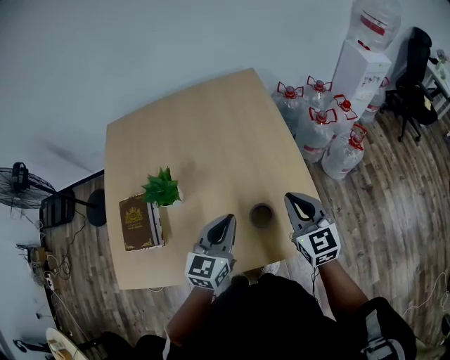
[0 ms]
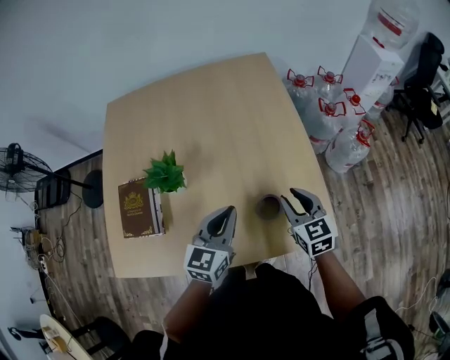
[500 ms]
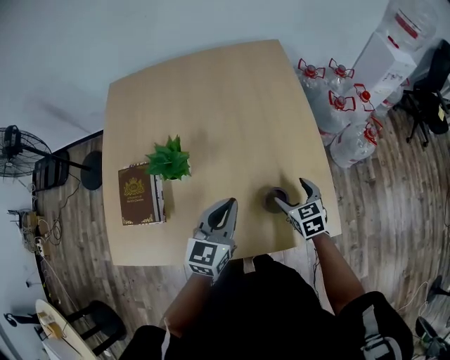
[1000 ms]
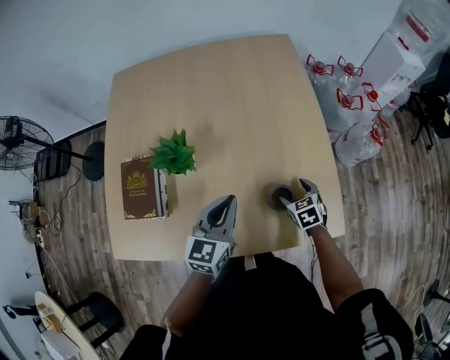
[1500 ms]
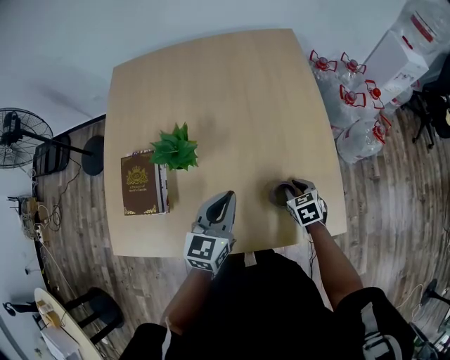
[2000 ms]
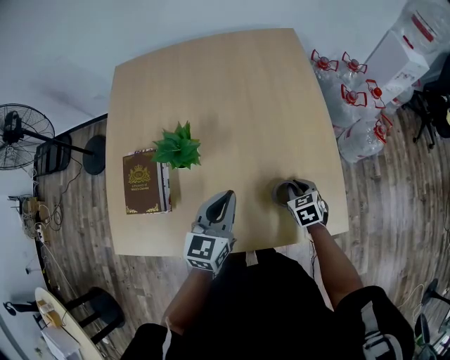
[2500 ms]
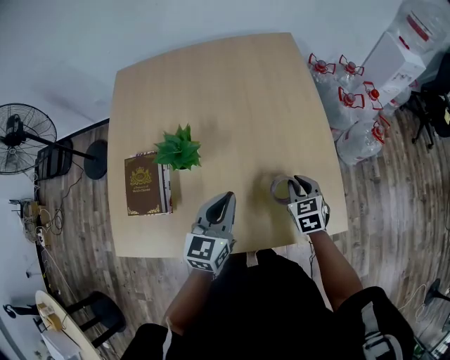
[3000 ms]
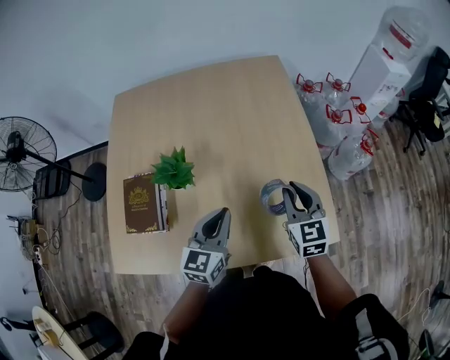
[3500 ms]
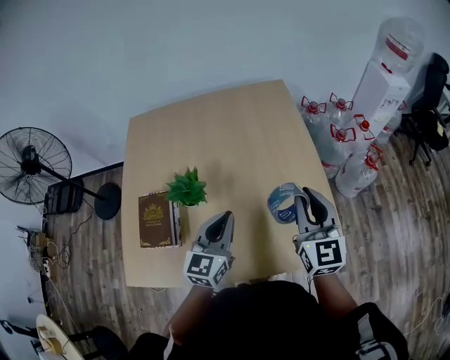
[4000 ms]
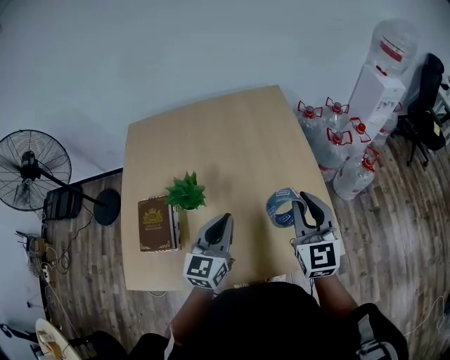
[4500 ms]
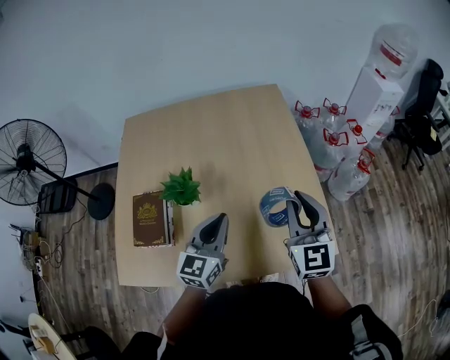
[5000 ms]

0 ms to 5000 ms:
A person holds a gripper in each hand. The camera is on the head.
0 ms to 2500 ms: The right gripper moves downward, about 25 cm, angles its fingers downward, by some 40 degrees, and opens, then closes again. The left gripper is displaced to the left by about 10 cm.
2500 ms to 5000 ms: The left gripper goes about 10 cm upward, while the right gripper goes about 35 cm upward, and angles its fingers upward, by approximately 50 degrees.

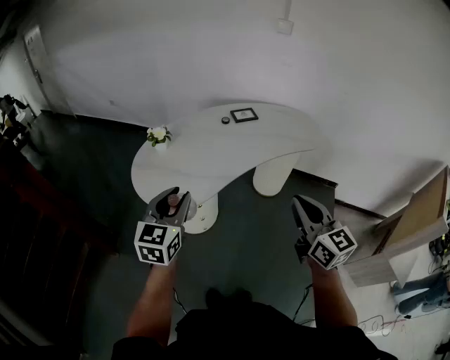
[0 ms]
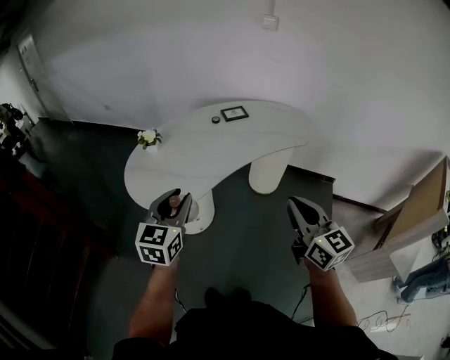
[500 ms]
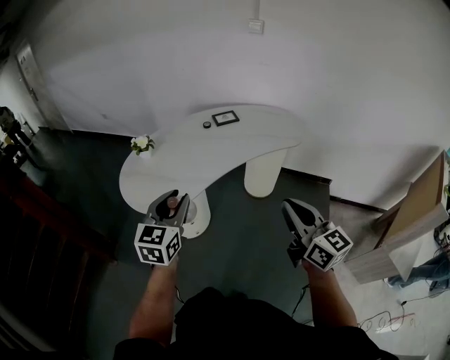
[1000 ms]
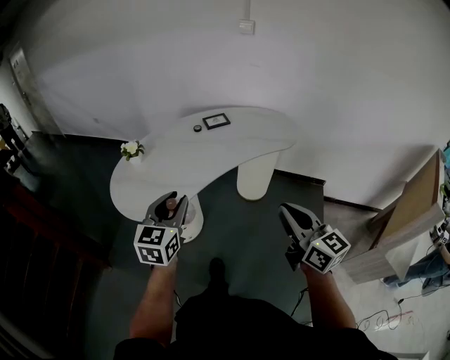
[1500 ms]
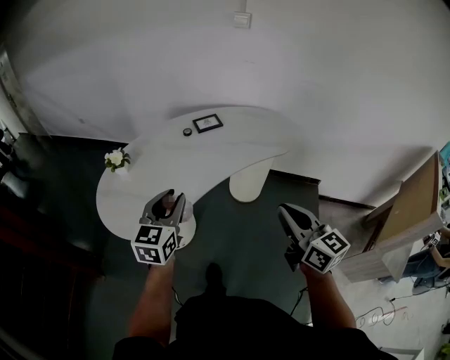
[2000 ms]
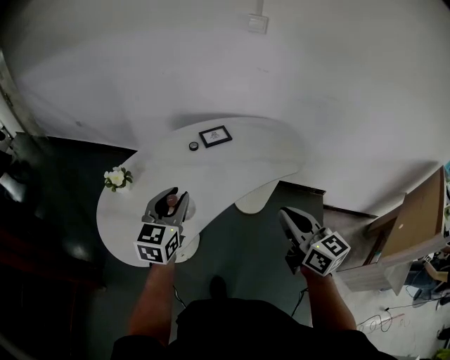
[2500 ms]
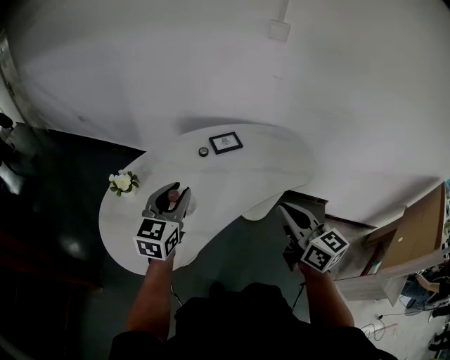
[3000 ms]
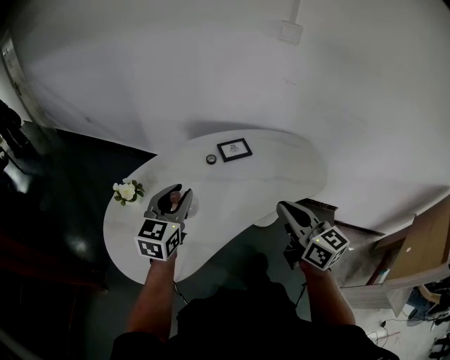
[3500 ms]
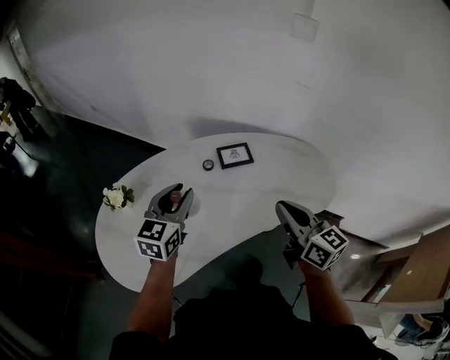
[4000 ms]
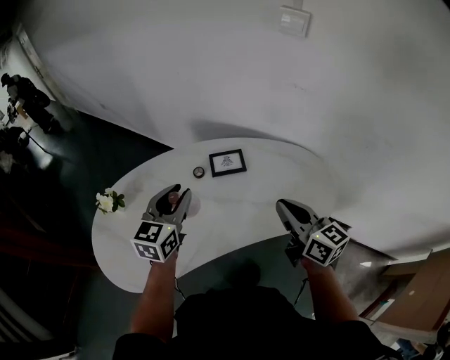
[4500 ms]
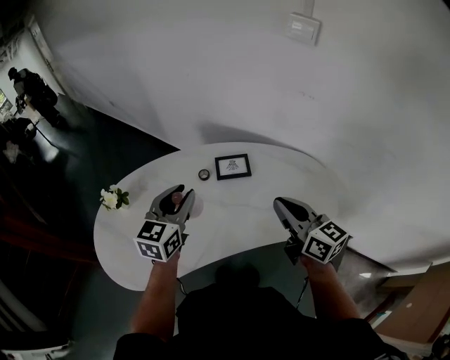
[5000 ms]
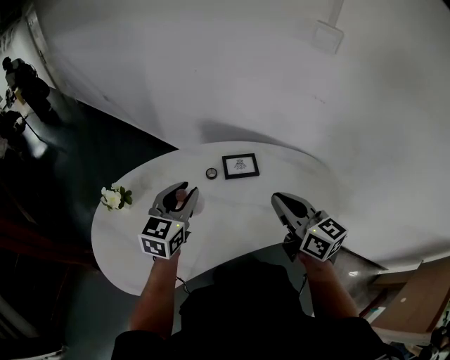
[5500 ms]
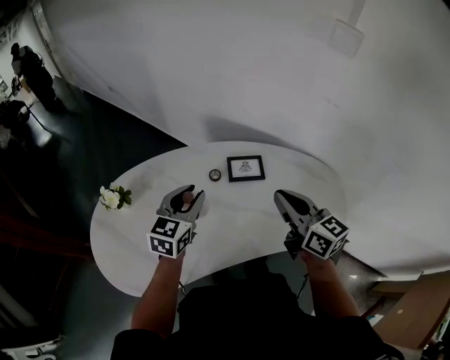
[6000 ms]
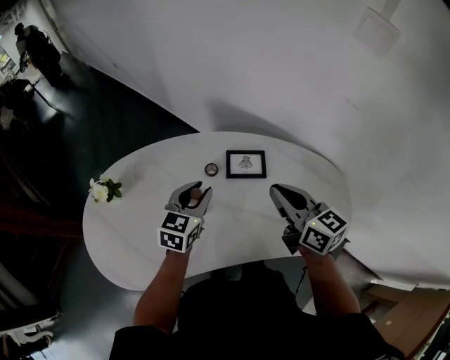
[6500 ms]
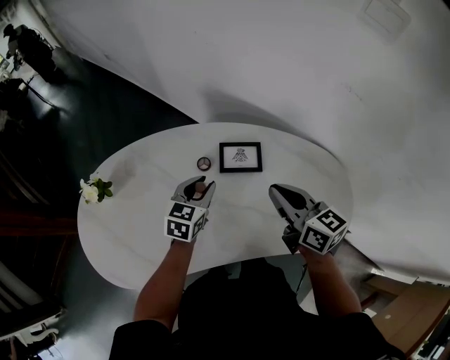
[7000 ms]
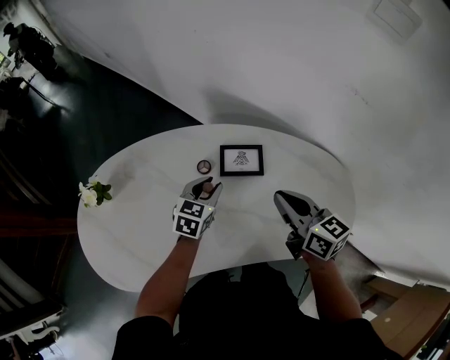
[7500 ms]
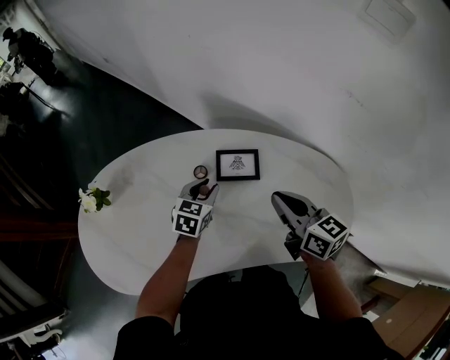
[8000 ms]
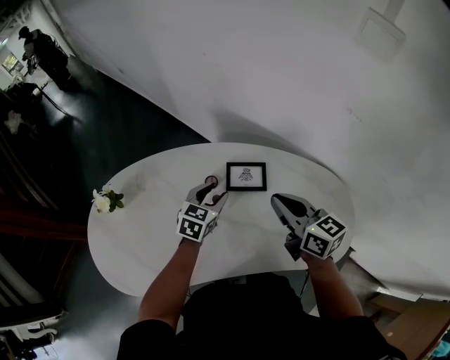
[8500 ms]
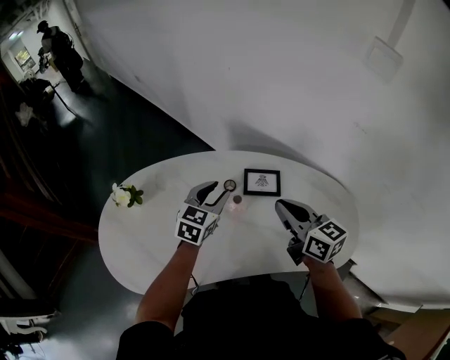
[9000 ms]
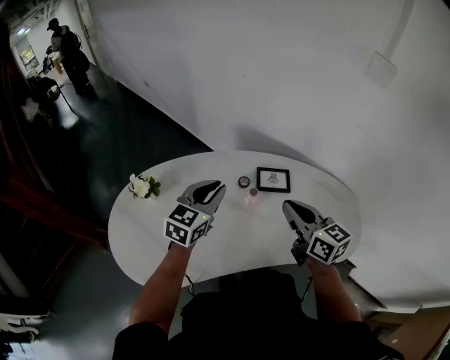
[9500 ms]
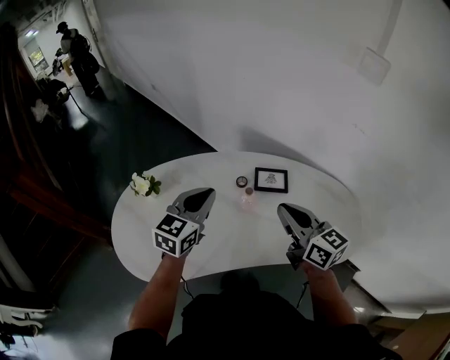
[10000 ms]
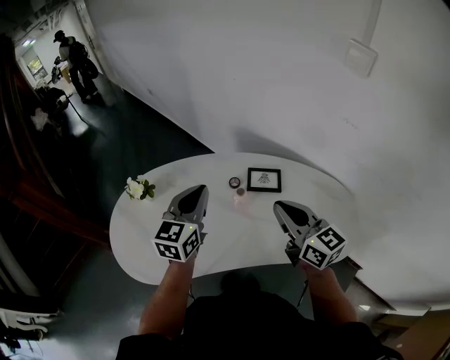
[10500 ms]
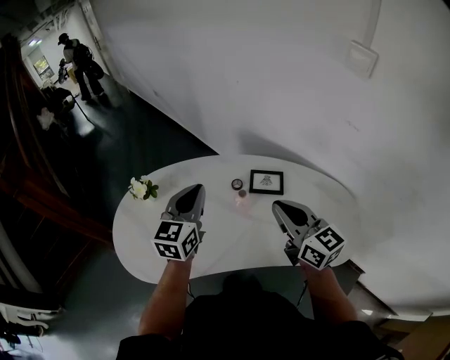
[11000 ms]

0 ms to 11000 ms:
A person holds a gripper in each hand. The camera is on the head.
0 ms to 2000 ms: Both grippers travel together to the right and forward, approximately 15 cm.
2000 ms to 3500 ms: Both grippers travel together forward, some 25 cm.
3500 ms to 5500 ms: The left gripper is displaced forward and to the right by approximately 15 cm, while the right gripper shifts approximately 20 cm forward.
5500 ms to 7500 ms: The left gripper goes about 25 cm downward, to the right and forward, and turns by about 20 degrees; the right gripper moves downward, forward and to the right, about 20 cm.
7500 ms to 9000 ms: The right gripper shifts roughly 10 cm to the left and upward, while the left gripper goes roughly 15 cm upward and to the left.
9000 ms to 11000 ms: The right gripper moves backward and upward, roughly 10 cm. Meanwhile the left gripper travels upward, backward and to the left by about 20 cm, turns by about 20 degrees, and closes up.

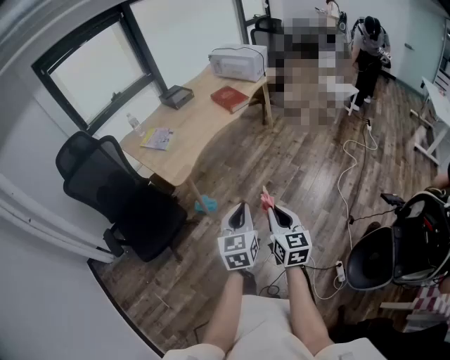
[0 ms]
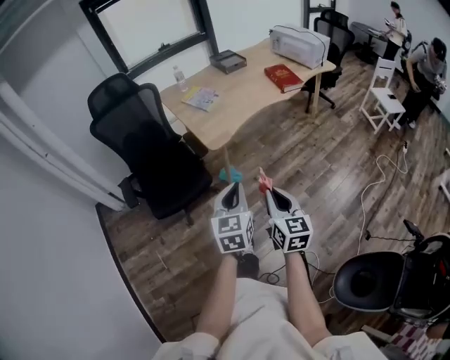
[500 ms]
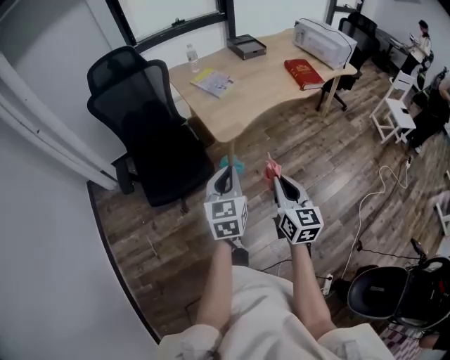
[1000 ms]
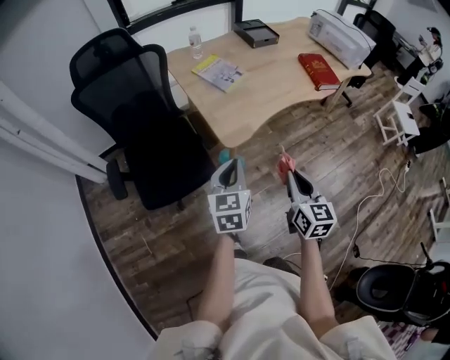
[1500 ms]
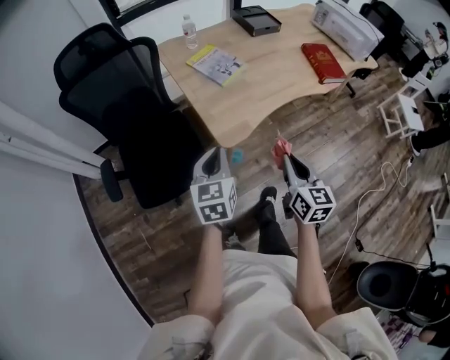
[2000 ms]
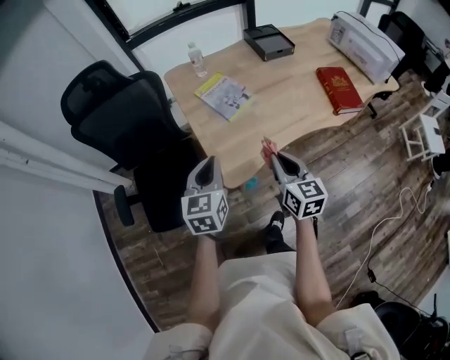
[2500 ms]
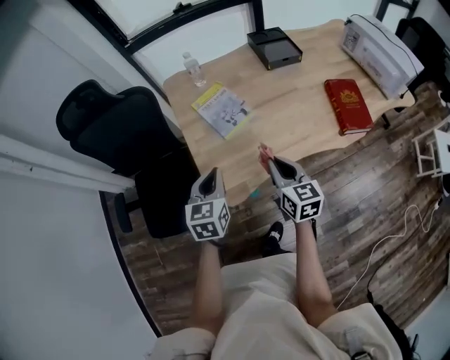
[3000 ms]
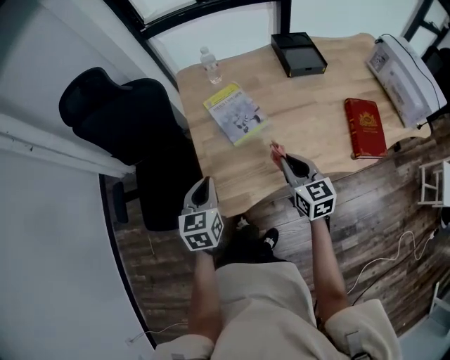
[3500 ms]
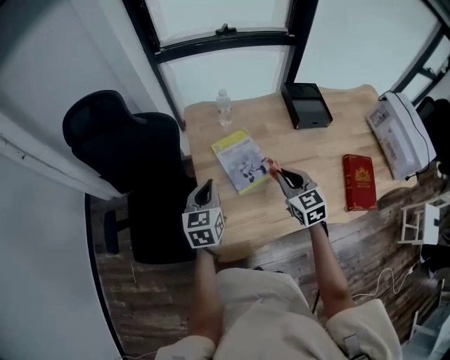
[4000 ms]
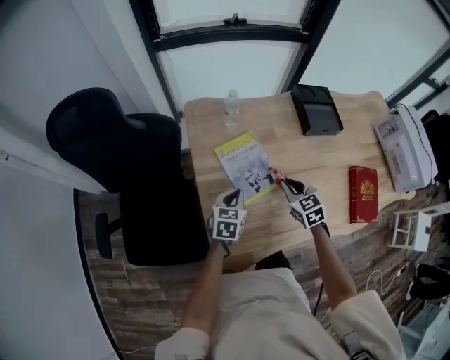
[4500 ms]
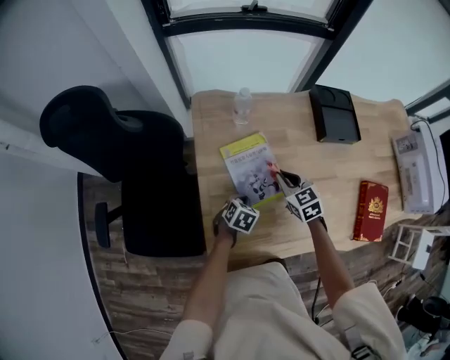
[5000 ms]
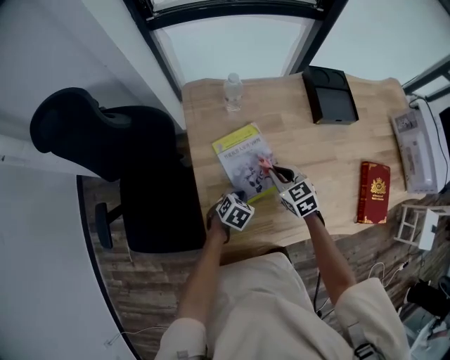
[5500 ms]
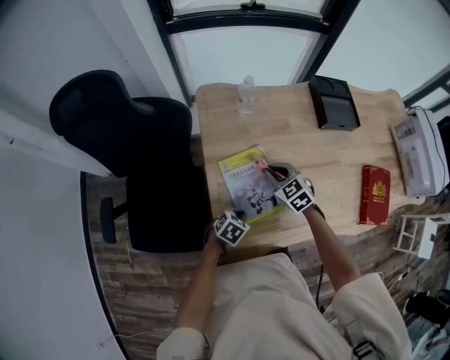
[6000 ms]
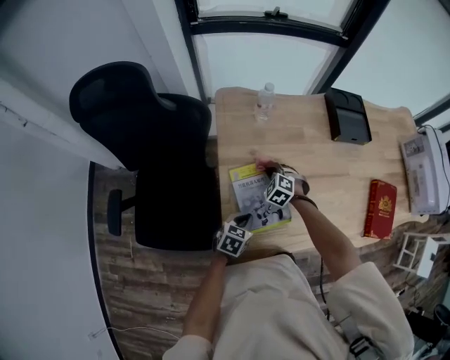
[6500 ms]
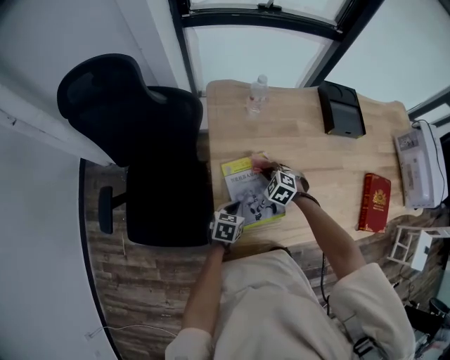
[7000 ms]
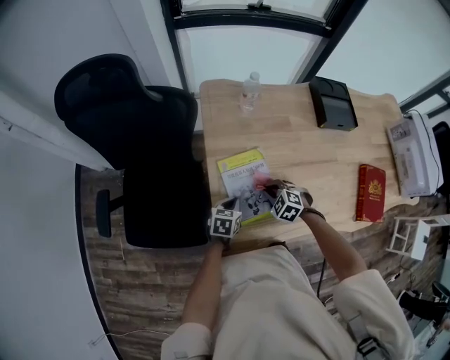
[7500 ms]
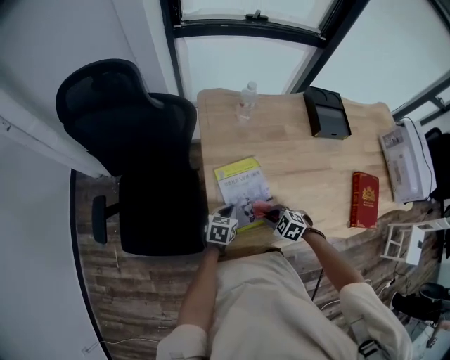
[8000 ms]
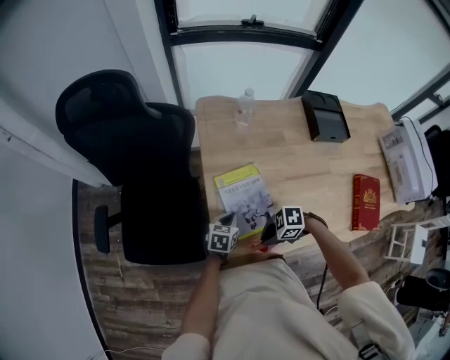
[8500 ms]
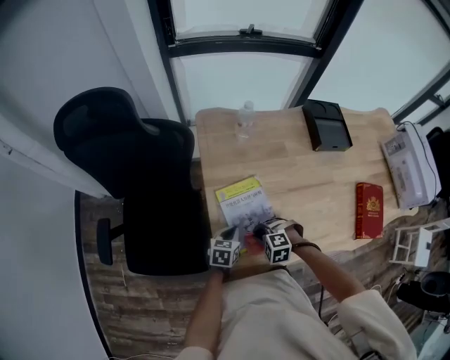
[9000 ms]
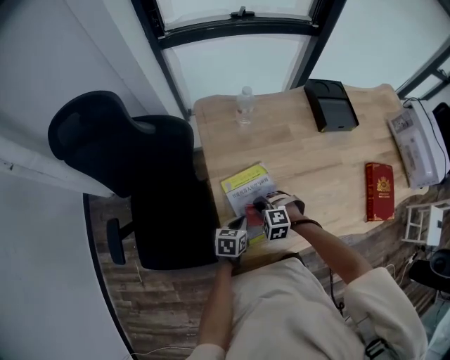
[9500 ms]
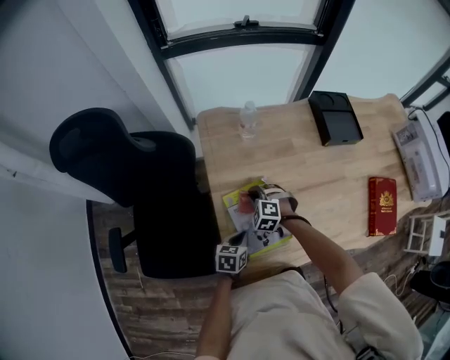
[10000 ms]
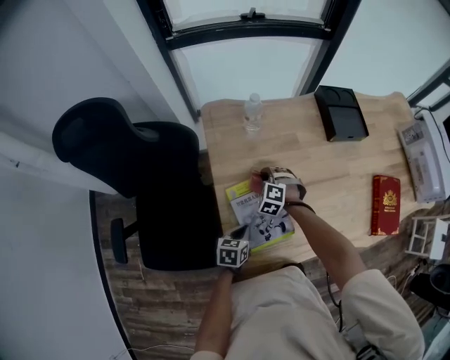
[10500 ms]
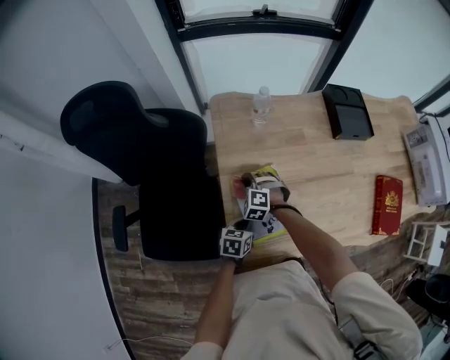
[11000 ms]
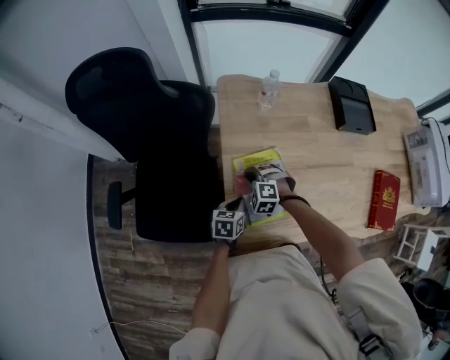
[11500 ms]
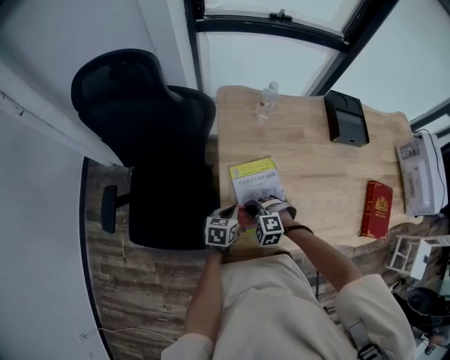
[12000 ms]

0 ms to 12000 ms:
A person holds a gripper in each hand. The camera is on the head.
0 ms to 2000 ms: The pair of grippers is taken forward and to the left, about 40 cm. The left gripper changes its angle by approximately 20 degrees.
2000 ms to 4000 ms: Both grippers travel together forward, about 40 cm. The right gripper swivels some 40 degrees.
4000 ms to 6000 ms: The right gripper is displaced downward, to the left and forward by approximately 20 cm, and turns by roughly 20 degrees. The left gripper goes roughly 25 cm downward, and angles its fingers downward, by roughly 40 degrees.
6000 ms to 8000 ms: The right gripper moves some 20 cm, and rotates some 30 degrees. The left gripper rotates approximately 30 degrees.
8000 ms to 10000 ms: The right gripper moves approximately 20 cm, and changes its angle by approximately 30 degrees.
10000 ms to 12000 ms: The right gripper moves roughly 15 cm.
